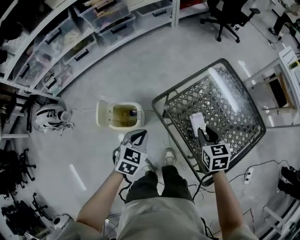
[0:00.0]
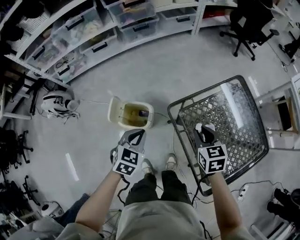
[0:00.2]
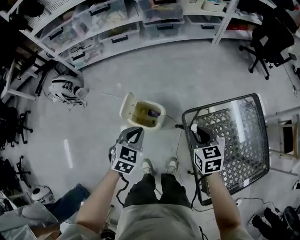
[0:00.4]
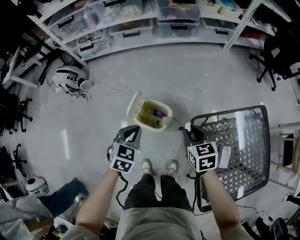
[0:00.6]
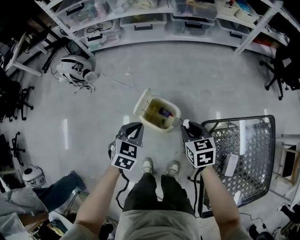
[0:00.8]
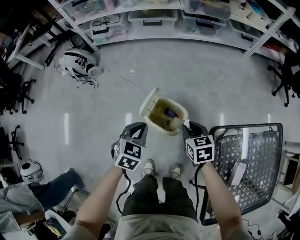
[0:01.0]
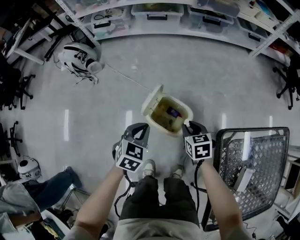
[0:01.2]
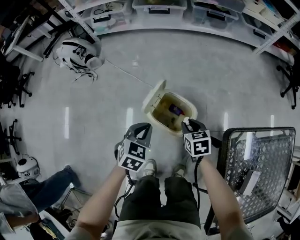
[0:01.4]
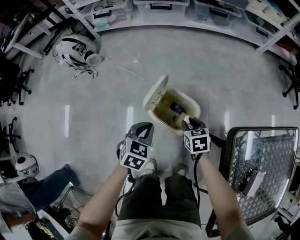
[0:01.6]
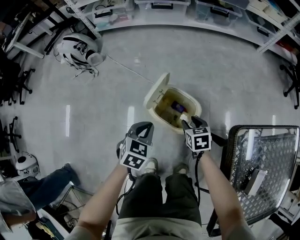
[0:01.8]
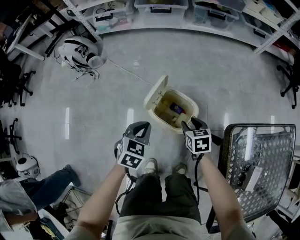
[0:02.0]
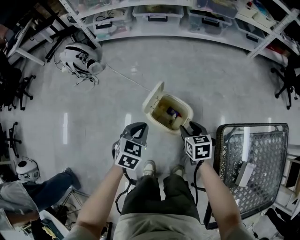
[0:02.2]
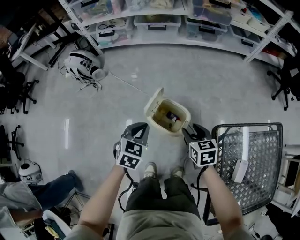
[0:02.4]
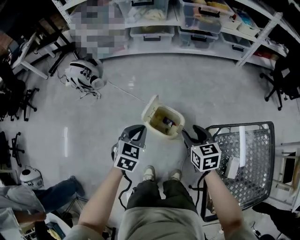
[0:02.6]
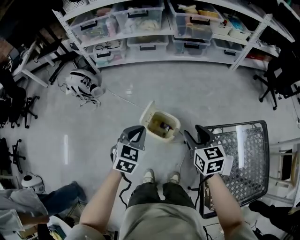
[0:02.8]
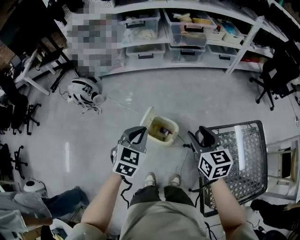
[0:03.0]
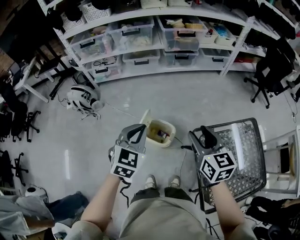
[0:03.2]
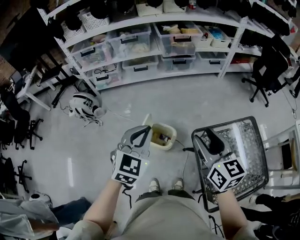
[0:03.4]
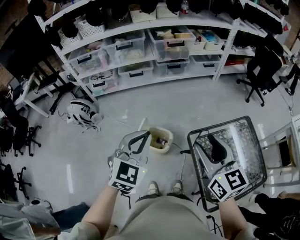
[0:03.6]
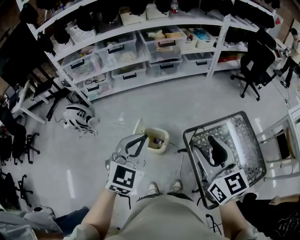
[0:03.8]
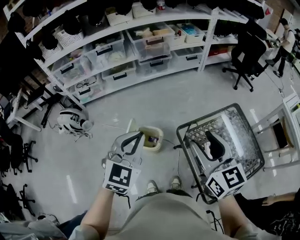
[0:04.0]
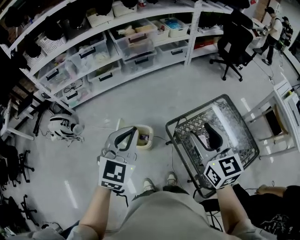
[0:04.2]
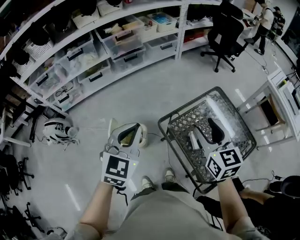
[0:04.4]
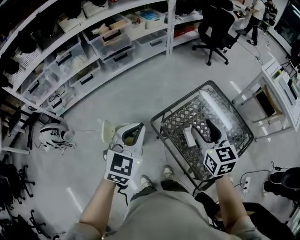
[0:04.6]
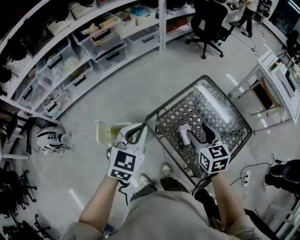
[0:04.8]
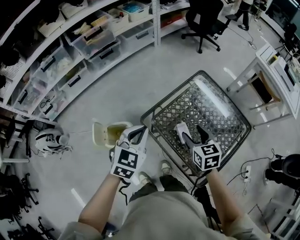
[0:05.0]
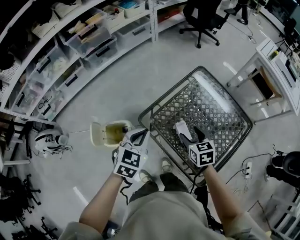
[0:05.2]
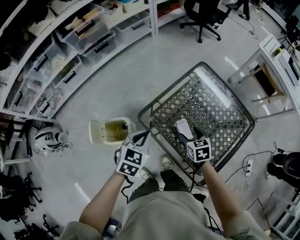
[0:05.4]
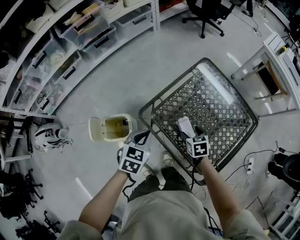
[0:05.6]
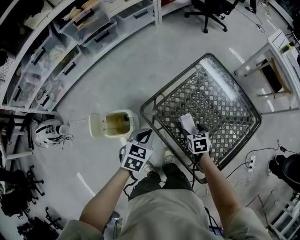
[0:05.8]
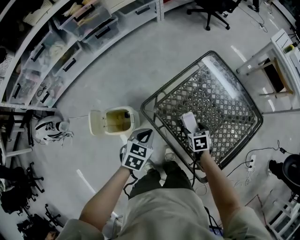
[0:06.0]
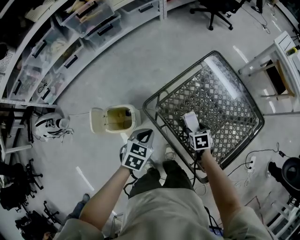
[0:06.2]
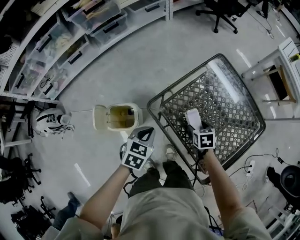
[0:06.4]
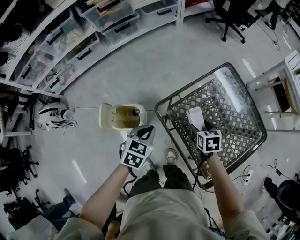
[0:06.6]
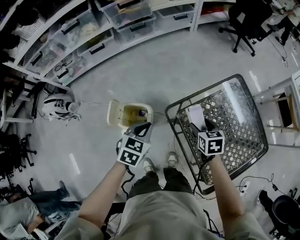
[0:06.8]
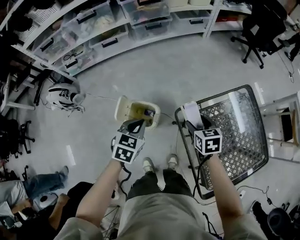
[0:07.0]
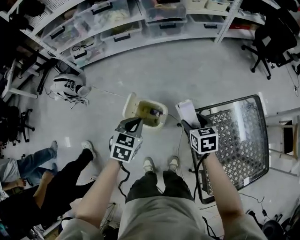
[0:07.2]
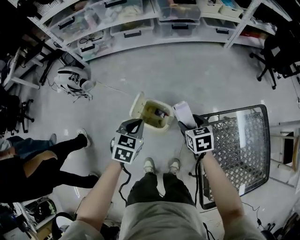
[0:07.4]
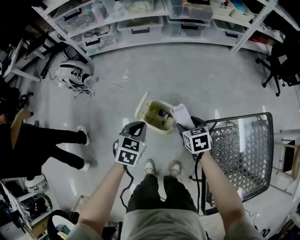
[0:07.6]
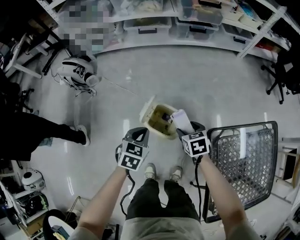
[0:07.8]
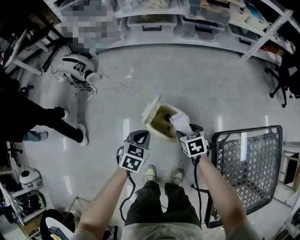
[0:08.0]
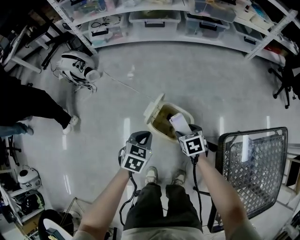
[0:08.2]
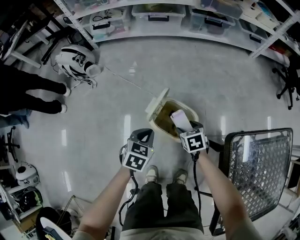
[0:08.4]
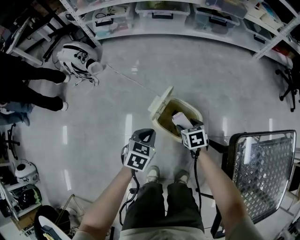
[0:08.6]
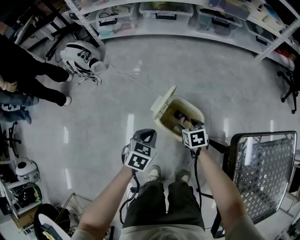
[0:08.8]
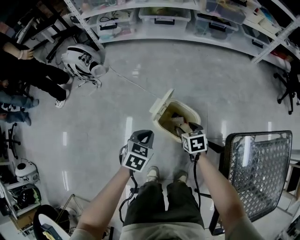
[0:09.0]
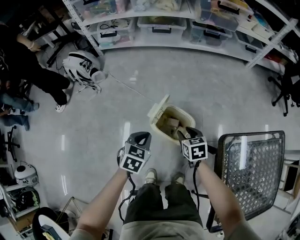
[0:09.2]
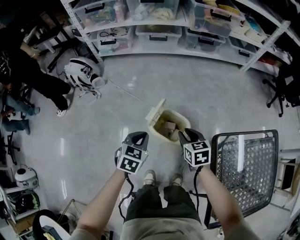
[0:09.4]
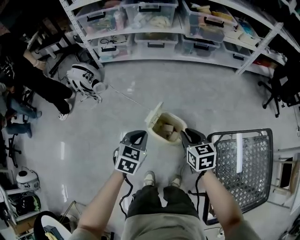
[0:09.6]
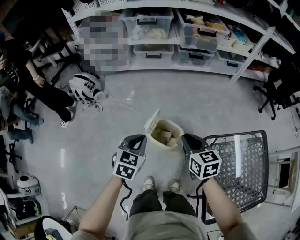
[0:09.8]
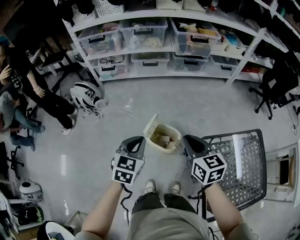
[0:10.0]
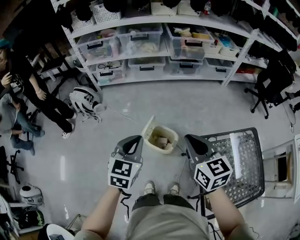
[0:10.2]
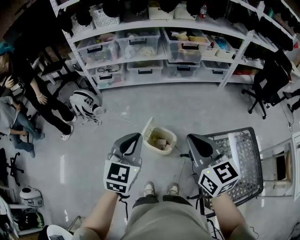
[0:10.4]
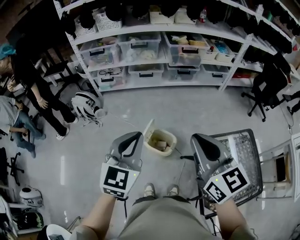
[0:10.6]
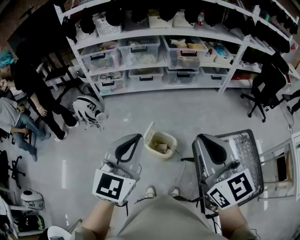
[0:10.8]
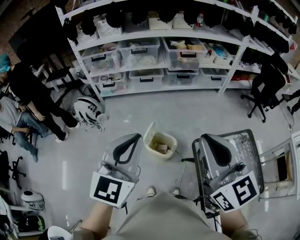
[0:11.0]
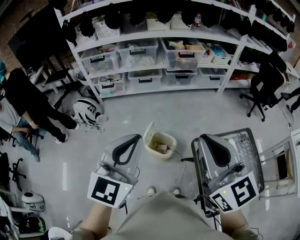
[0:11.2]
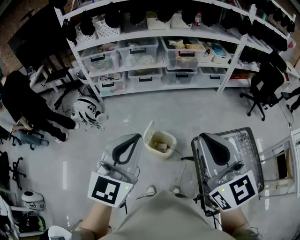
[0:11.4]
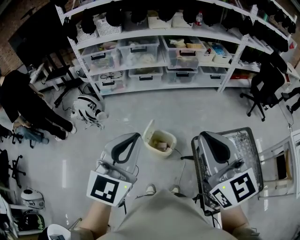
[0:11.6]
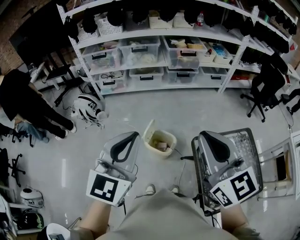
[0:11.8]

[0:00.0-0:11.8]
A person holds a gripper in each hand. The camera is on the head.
0:00.0 to 0:01.4: The left gripper ends up some 35 cm from where it was, and rotates approximately 30 degrees. Meanwhile the right gripper moves some 50 cm, and rotates approximately 40 degrees.
0:01.4 to 0:03.0: Both grippers travel together upward, some 35 cm. The right gripper changes its angle by some 30 degrees, and opens its fingers.
0:03.0 to 0:04.4: The left gripper ends up roughly 25 cm from where it was, and rotates approximately 30 degrees, while the right gripper changes place by some 25 cm, and rotates some 30 degrees.
0:04.4 to 0:06.0: Both grippers move downward, roughly 35 cm. The left gripper rotates approximately 40 degrees, while the right gripper tips its fingers downward by some 50 degrees.
0:06.0 to 0:07.4: The left gripper shifts by some 30 cm, and rotates about 40 degrees; the right gripper changes place by about 35 cm, and rotates roughly 40 degrees.
0:07.4 to 0:08.8: The two grippers go approximately 30 cm downward and to the left.
0:08.8 to 0:10.4: Both grippers move upward, approximately 60 cm. The left gripper tilts its fingers roughly 30 degrees upward. The right gripper angles its fingers upward, by some 50 degrees, and closes up.
0:10.4 to 0:11.8: Both grippers travel together upward and backward, approximately 15 cm.

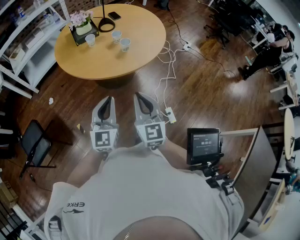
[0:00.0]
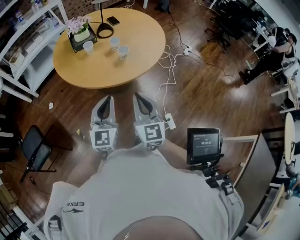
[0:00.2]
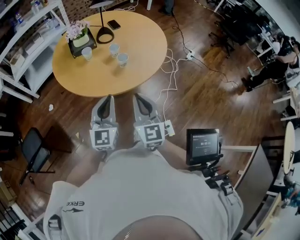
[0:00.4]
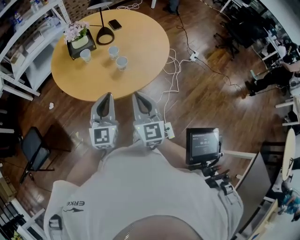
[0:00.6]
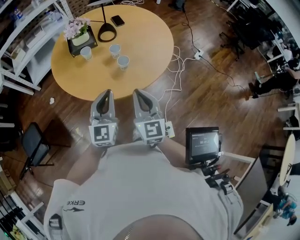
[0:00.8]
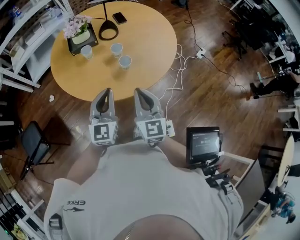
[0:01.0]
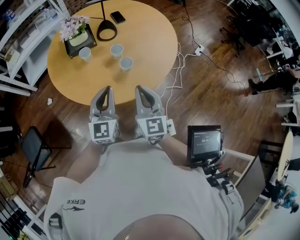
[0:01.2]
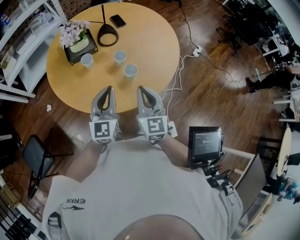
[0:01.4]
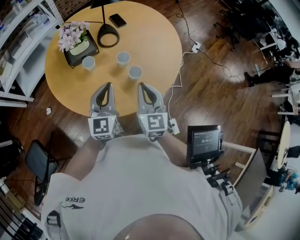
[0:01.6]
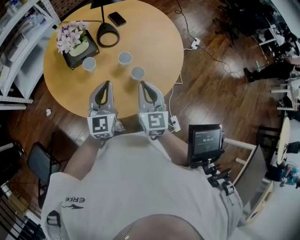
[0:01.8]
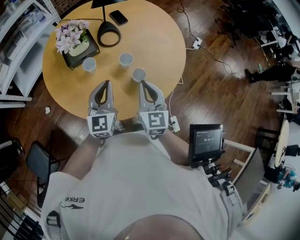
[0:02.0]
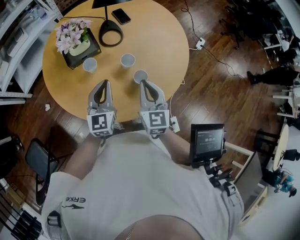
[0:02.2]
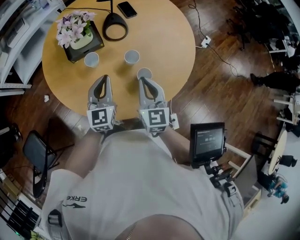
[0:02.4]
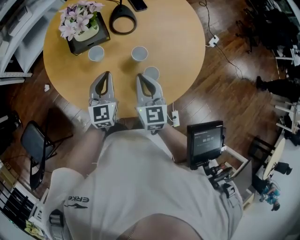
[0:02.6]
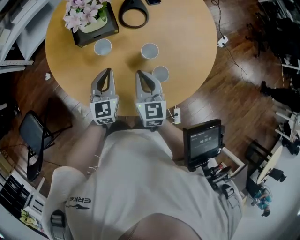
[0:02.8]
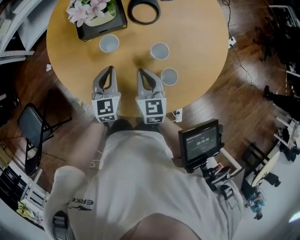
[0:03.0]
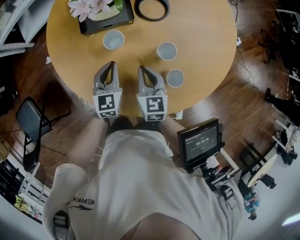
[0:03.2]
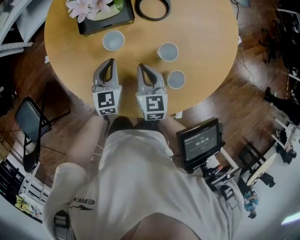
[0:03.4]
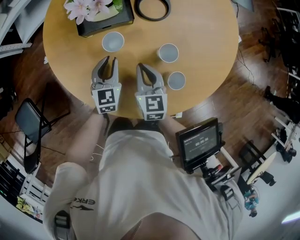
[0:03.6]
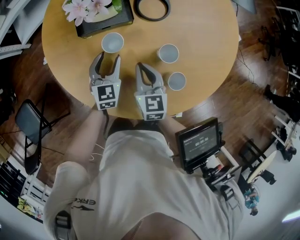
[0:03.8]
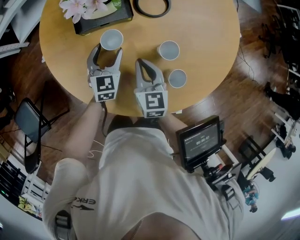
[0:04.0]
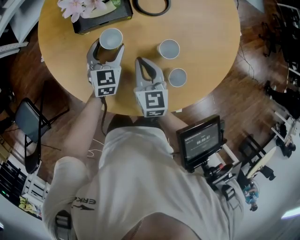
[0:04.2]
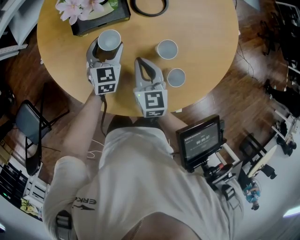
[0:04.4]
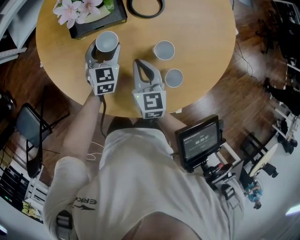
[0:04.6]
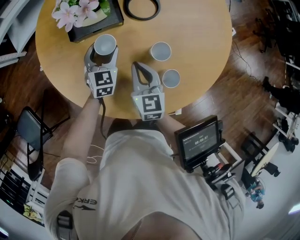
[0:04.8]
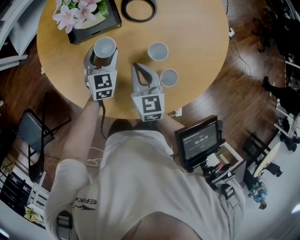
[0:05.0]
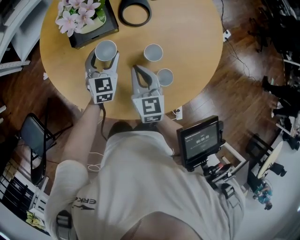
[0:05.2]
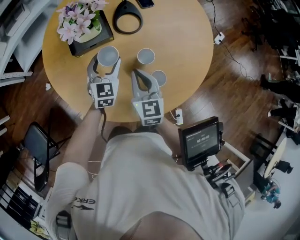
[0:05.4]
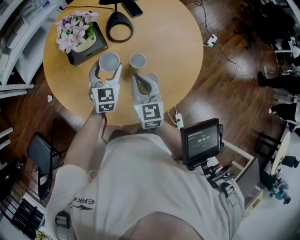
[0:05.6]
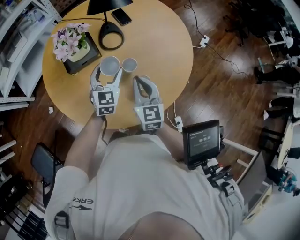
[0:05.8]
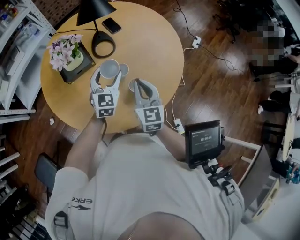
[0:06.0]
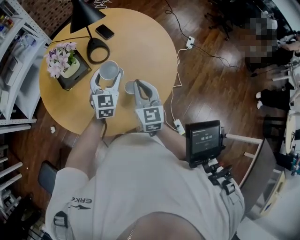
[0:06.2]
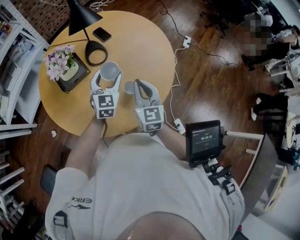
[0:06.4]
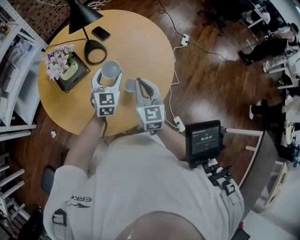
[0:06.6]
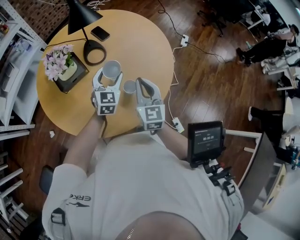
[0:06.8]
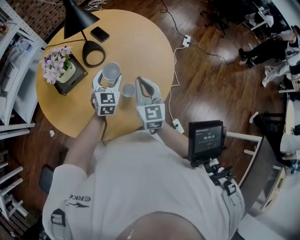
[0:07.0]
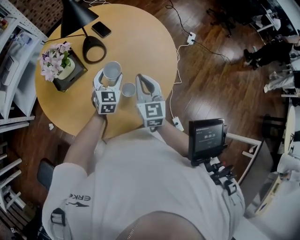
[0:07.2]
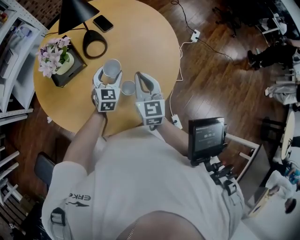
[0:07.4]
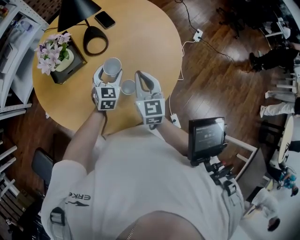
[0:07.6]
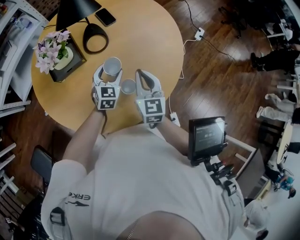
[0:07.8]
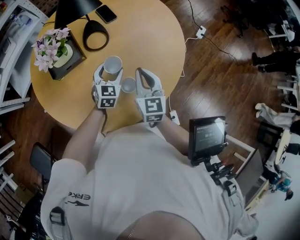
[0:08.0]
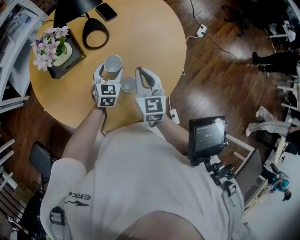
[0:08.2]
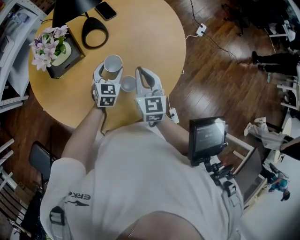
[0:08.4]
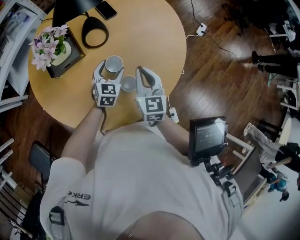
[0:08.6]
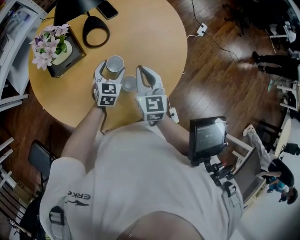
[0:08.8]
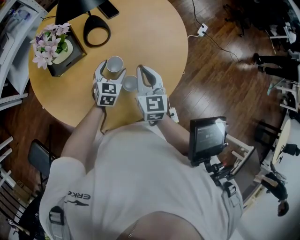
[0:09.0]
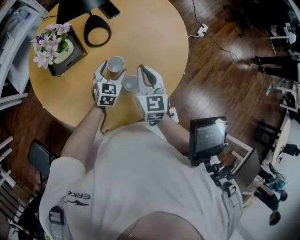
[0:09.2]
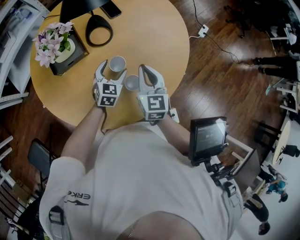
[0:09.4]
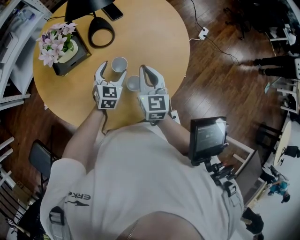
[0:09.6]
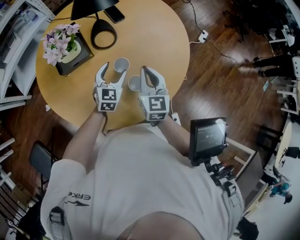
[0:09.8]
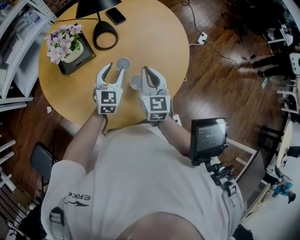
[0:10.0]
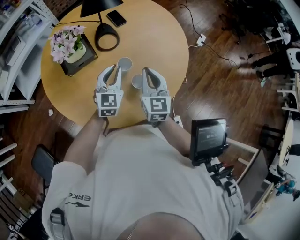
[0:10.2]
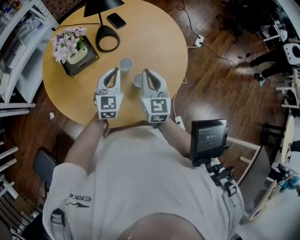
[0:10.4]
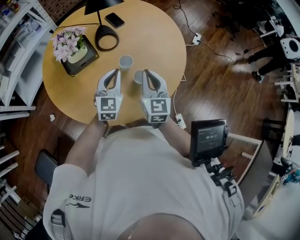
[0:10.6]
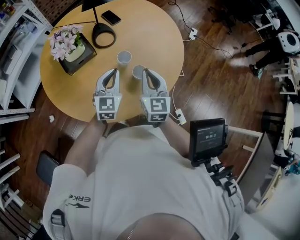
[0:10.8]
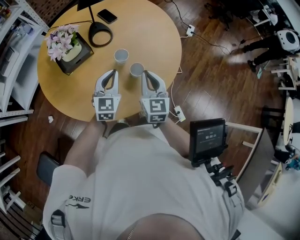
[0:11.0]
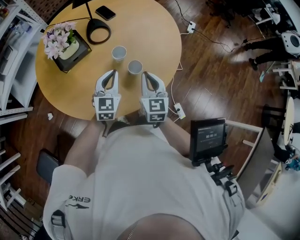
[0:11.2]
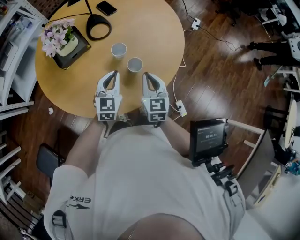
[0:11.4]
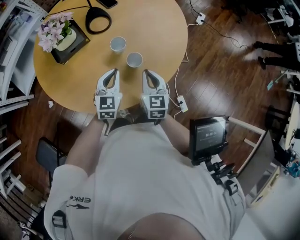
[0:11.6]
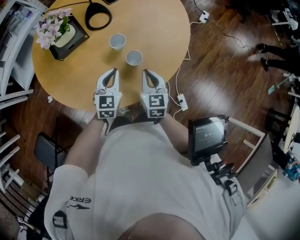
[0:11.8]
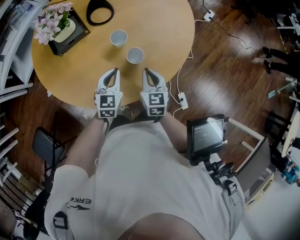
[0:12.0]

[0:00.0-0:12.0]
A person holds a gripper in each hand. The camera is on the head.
0:00.0 to 0:01.6: The grippers both shift forward by about 35 cm.
0:01.6 to 0:03.0: Both grippers move downward, forward and to the left, roughly 25 cm. The left gripper rotates roughly 30 degrees, while the right gripper turns by roughly 20 degrees.
0:03.0 to 0:04.4: The left gripper is displaced forward and downward by about 10 cm, and opens its fingers. Meanwhile the right gripper changes place by about 5 cm.
0:04.4 to 0:06.0: Both grippers move upward and to the right, roughly 25 cm. The right gripper changes its angle by about 20 degrees. Meanwhile the left gripper rotates approximately 20 degrees.
0:06.0 to 0:07.6: The left gripper shifts approximately 10 cm downward. Meanwhile the right gripper goes about 5 cm forward.
0:07.6 to 0:09.0: The left gripper moves downward, approximately 5 cm.
0:09.0 to 0:10.4: The left gripper travels upward and backward by roughly 15 cm, rotates roughly 20 degrees, and closes up, while the right gripper heads backward and upward, covering roughly 10 cm.
0:10.4 to 0:12.0: The two grippers go roughly 15 cm downward and backward.
